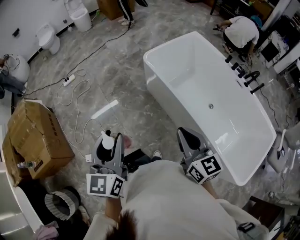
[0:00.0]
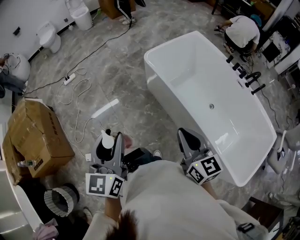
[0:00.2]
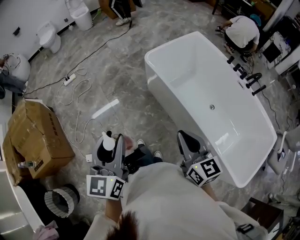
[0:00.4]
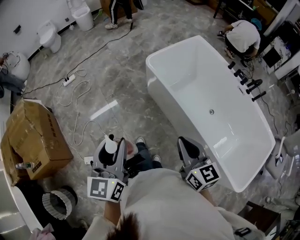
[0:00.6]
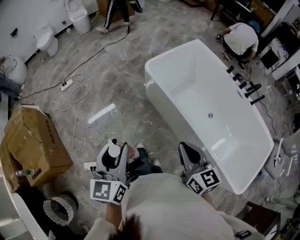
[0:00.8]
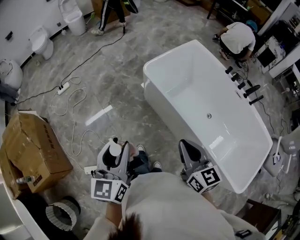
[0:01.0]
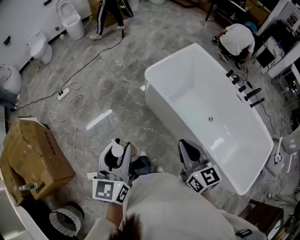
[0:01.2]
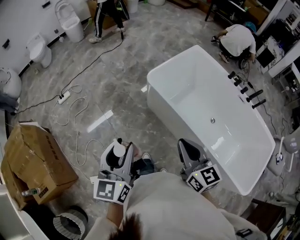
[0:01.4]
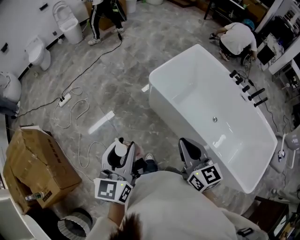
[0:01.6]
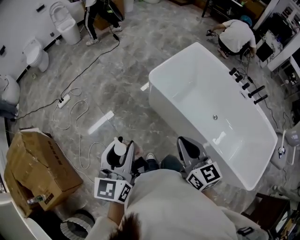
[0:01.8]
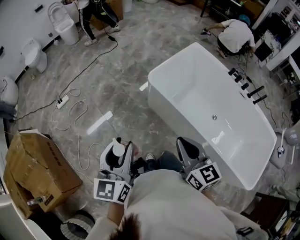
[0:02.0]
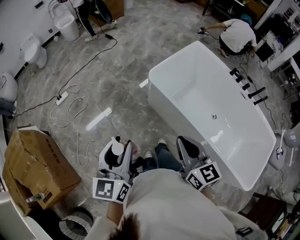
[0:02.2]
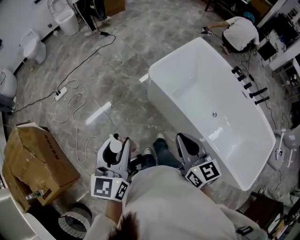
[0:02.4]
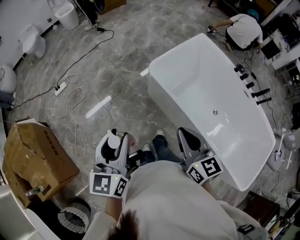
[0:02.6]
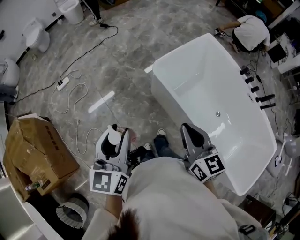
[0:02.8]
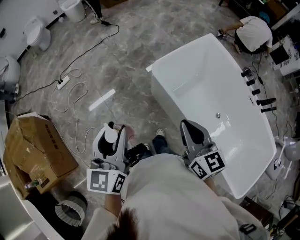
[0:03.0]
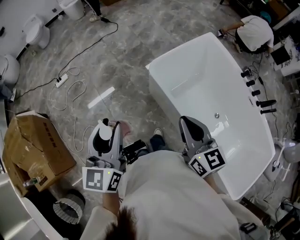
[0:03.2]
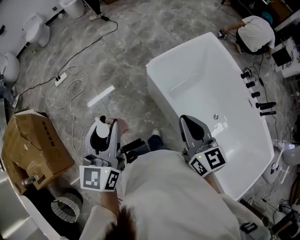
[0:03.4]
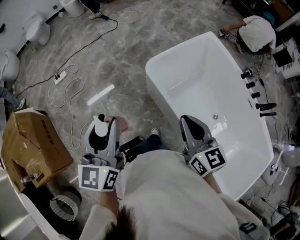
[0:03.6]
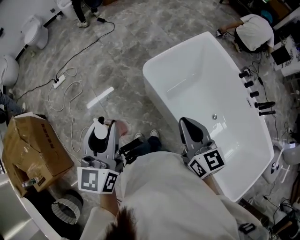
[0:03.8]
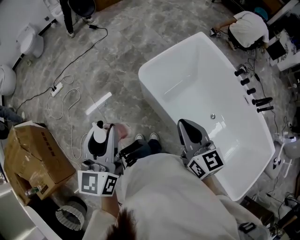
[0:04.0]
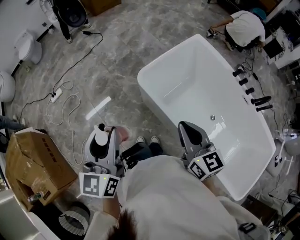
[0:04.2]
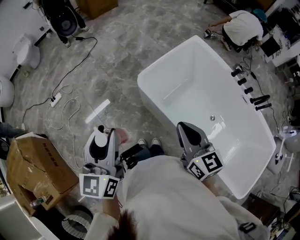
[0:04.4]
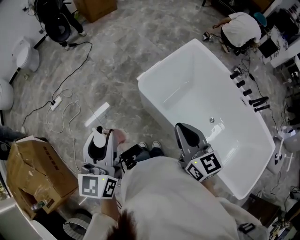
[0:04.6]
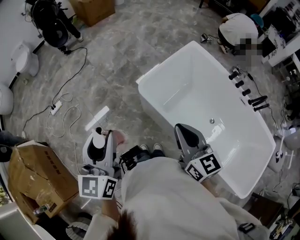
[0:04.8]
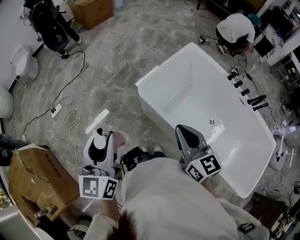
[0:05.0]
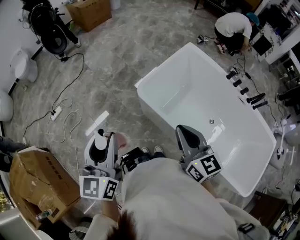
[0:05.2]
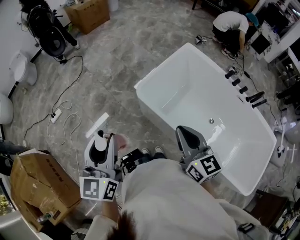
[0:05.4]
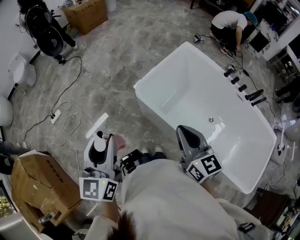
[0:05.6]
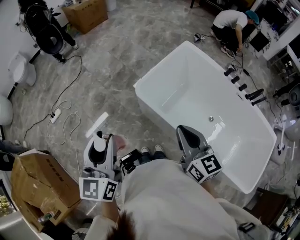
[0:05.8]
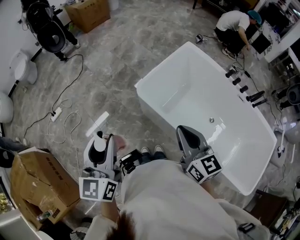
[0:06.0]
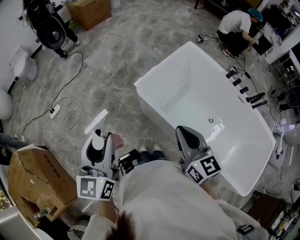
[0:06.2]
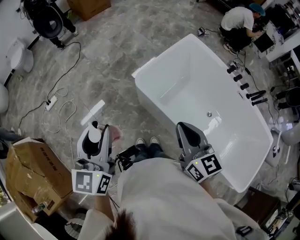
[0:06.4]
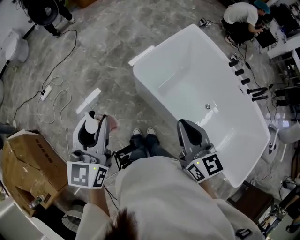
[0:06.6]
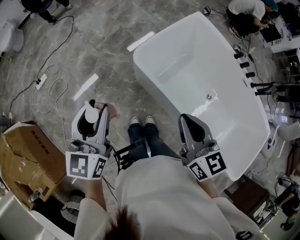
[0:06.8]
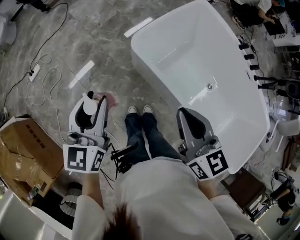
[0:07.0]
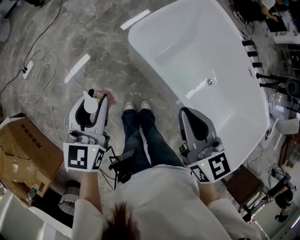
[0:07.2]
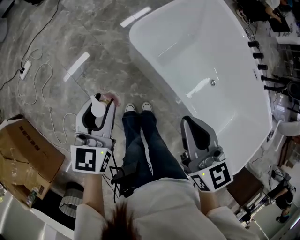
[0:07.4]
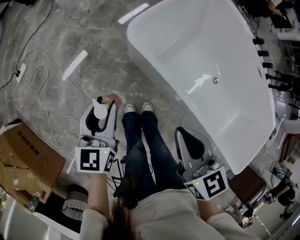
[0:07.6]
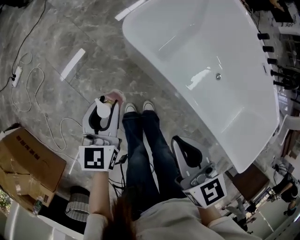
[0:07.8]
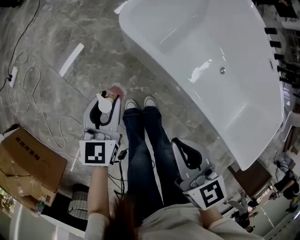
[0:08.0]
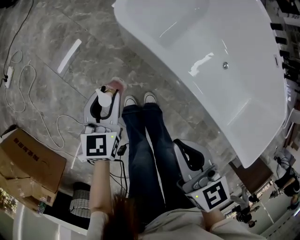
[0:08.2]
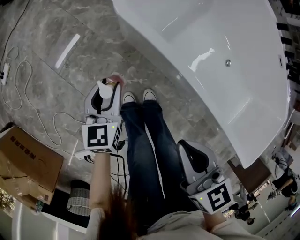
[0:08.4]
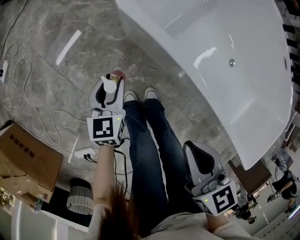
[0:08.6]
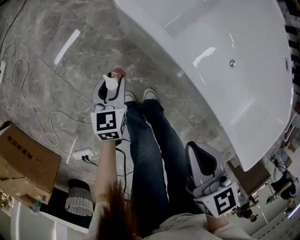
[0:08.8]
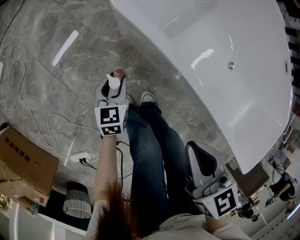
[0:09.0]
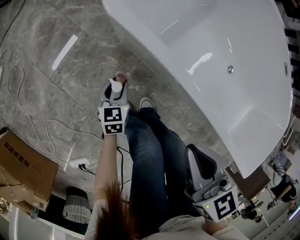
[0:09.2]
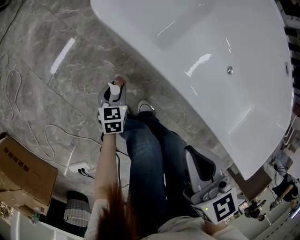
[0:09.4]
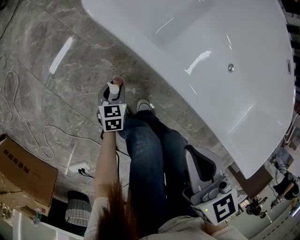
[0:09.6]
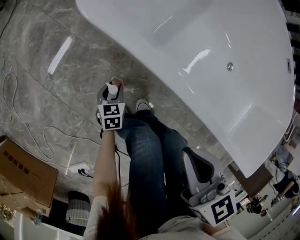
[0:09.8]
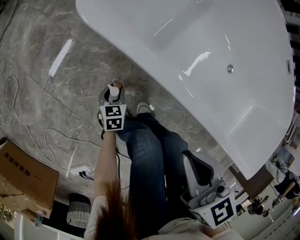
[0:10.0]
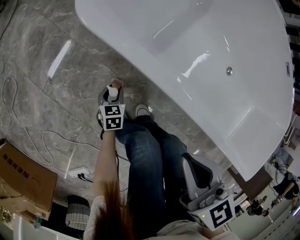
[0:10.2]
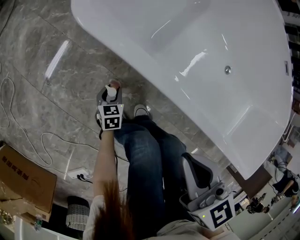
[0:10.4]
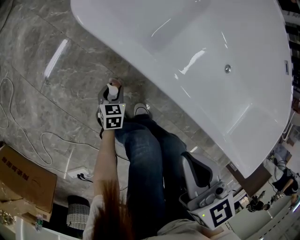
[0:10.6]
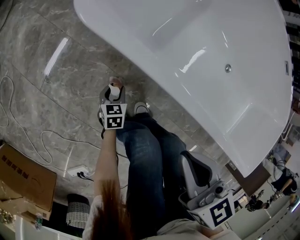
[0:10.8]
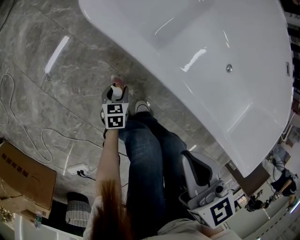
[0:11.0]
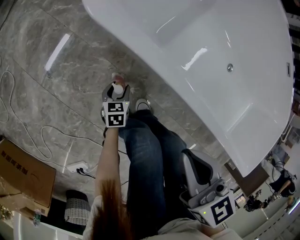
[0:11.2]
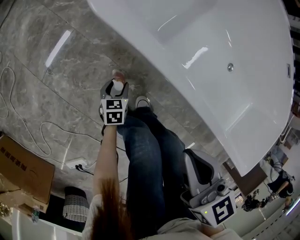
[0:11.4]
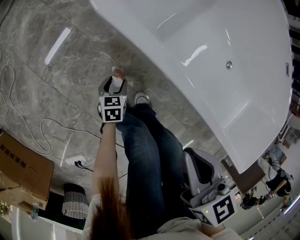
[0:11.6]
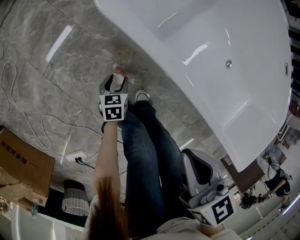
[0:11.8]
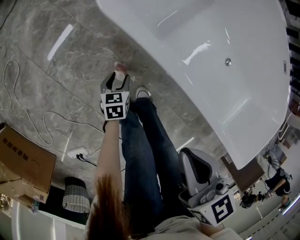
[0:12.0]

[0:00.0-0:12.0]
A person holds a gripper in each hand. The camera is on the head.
0:00.0 to 0:01.6: The right gripper is displaced forward and to the left by roughly 20 cm. Meanwhile the left gripper heads forward, covering roughly 20 cm.
0:01.6 to 0:03.0: The grippers both shift forward by approximately 15 cm.
0:03.0 to 0:04.4: The right gripper moves to the right, approximately 5 cm. The left gripper moves forward, approximately 5 cm.
0:04.4 to 0:06.0: The grippers stay close to where they were, moving slightly.
0:06.0 to 0:07.6: The right gripper is displaced downward by about 20 cm, while the left gripper is displaced downward by about 30 cm.
0:07.6 to 0:09.0: The left gripper shifts some 35 cm downward; the right gripper is displaced downward by about 20 cm.
0:09.0 to 0:10.4: The right gripper shifts by approximately 5 cm, while the left gripper moves downward, some 20 cm.
0:10.4 to 0:12.0: Both grippers move upward, approximately 5 cm.

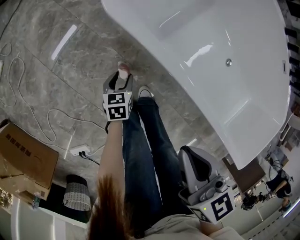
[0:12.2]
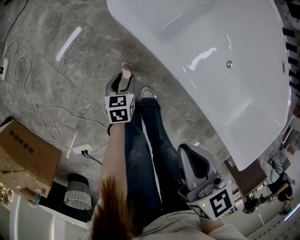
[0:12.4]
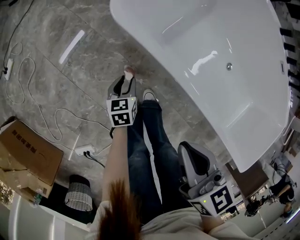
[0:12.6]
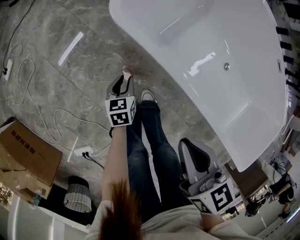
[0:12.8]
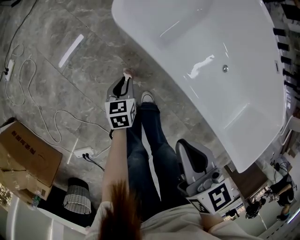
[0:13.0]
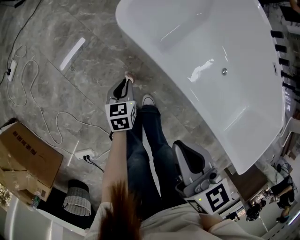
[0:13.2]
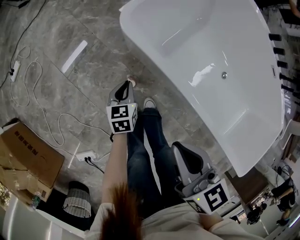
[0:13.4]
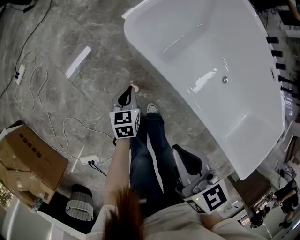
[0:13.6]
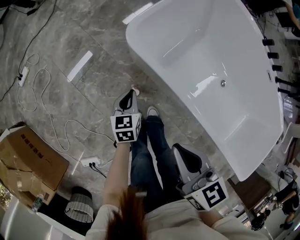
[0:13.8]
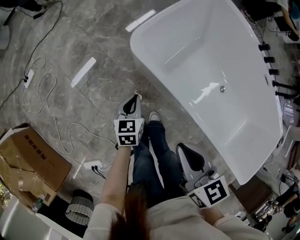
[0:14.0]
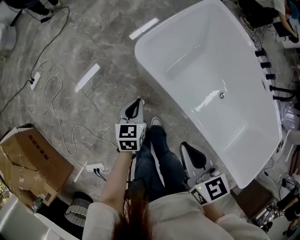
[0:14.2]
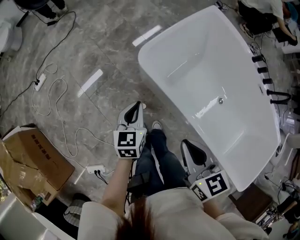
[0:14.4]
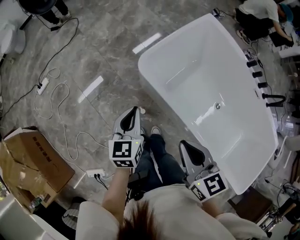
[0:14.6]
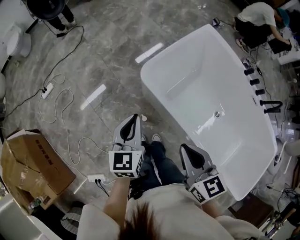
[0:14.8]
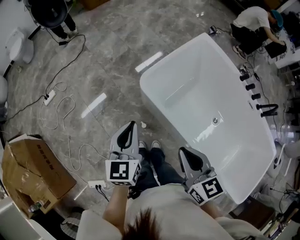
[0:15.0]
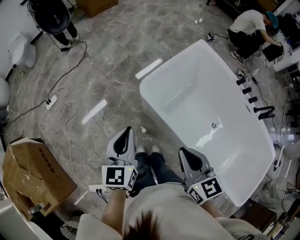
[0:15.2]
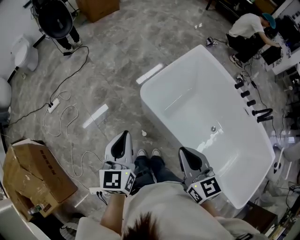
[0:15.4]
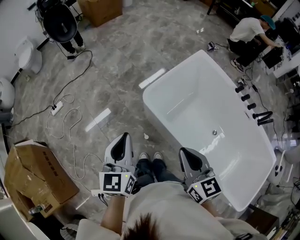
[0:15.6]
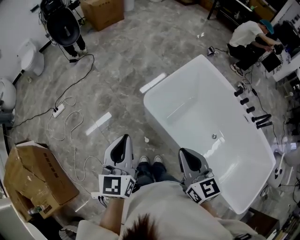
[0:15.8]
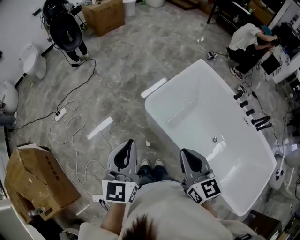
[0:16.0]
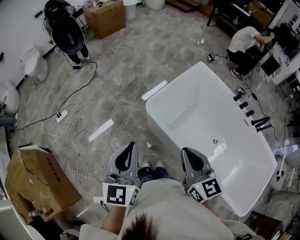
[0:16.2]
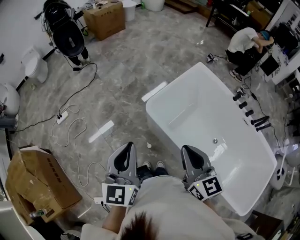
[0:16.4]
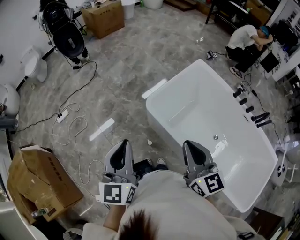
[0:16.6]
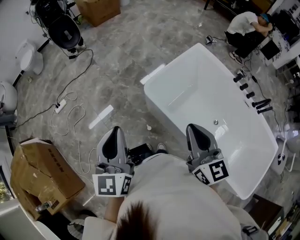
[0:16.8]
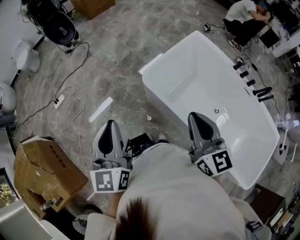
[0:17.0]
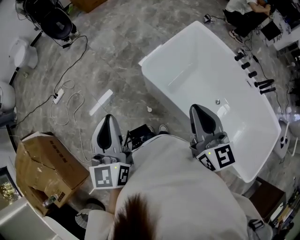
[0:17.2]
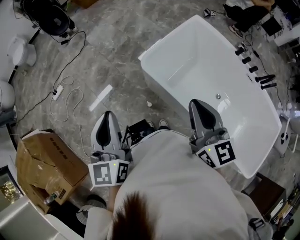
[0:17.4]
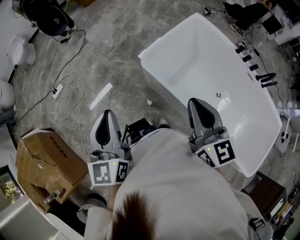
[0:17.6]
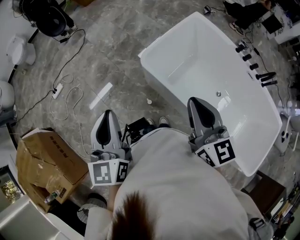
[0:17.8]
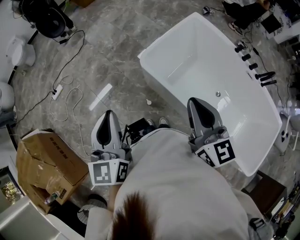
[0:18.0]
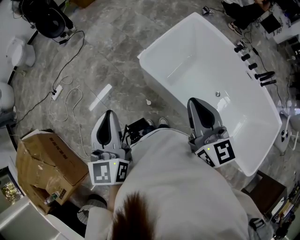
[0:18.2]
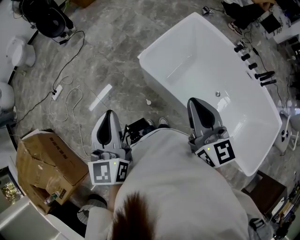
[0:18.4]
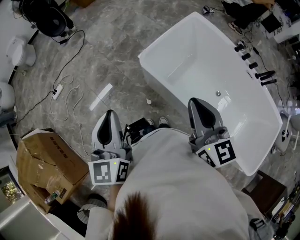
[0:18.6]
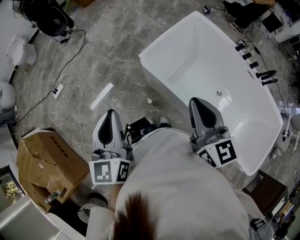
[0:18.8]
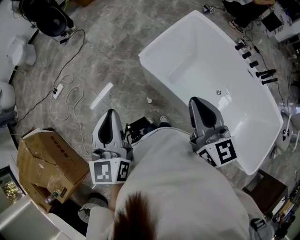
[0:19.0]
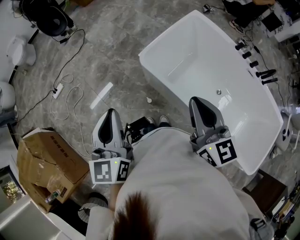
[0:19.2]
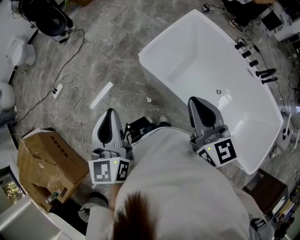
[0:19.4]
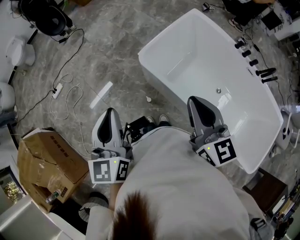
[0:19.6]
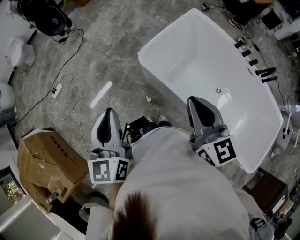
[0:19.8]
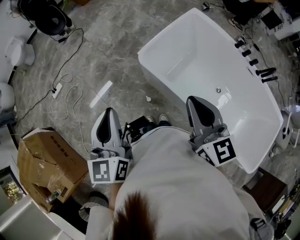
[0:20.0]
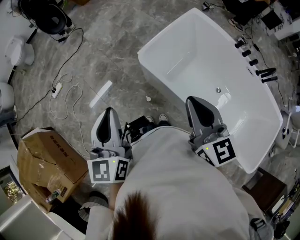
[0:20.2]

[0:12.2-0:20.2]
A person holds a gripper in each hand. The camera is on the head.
0:12.2 to 0:13.8: The left gripper travels upward by about 20 cm, and closes up. The right gripper moves upward, some 10 cm.
0:13.8 to 0:15.4: The right gripper travels upward by about 20 cm, while the left gripper travels upward by roughly 40 cm, and turns by about 30 degrees.
0:15.4 to 0:17.0: The right gripper heads upward, covering roughly 10 cm. Meanwhile the left gripper is displaced upward and to the left by about 10 cm.
0:17.0 to 0:18.6: There are only small adjustments of the grippers.
0:18.6 to 0:20.2: The two grippers keep their place.

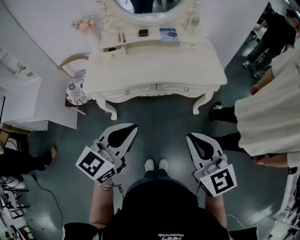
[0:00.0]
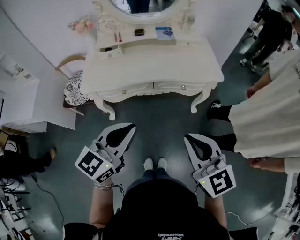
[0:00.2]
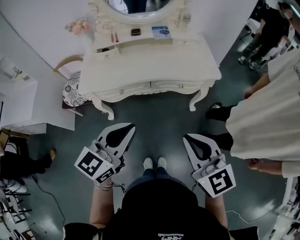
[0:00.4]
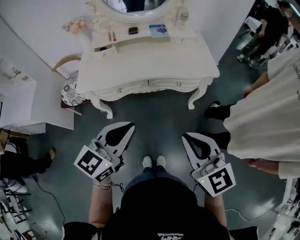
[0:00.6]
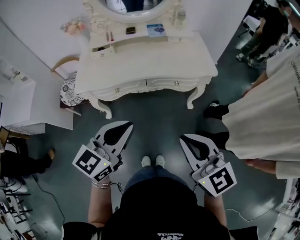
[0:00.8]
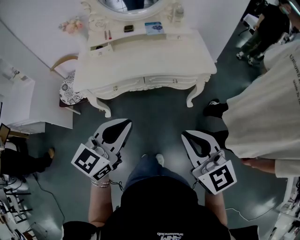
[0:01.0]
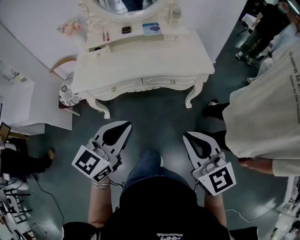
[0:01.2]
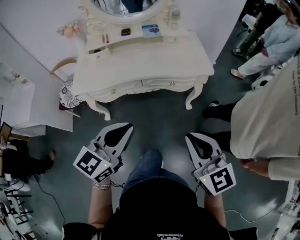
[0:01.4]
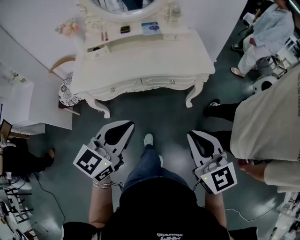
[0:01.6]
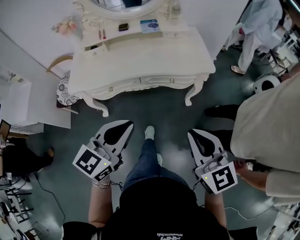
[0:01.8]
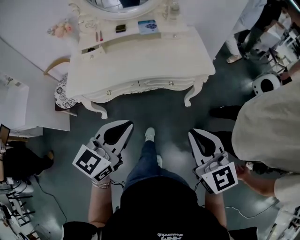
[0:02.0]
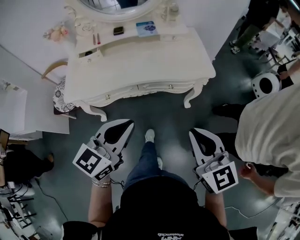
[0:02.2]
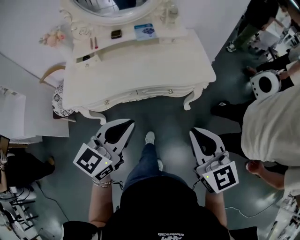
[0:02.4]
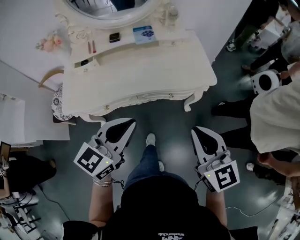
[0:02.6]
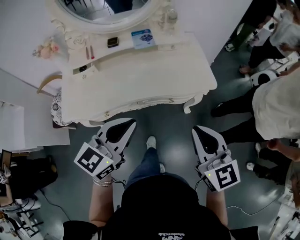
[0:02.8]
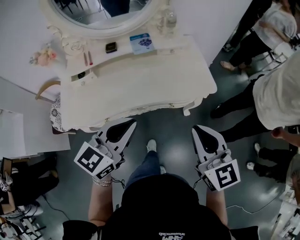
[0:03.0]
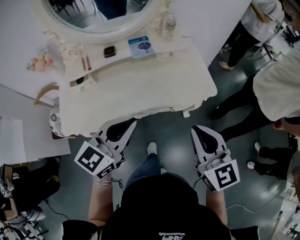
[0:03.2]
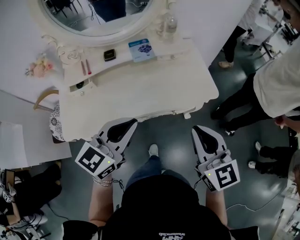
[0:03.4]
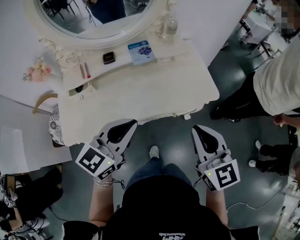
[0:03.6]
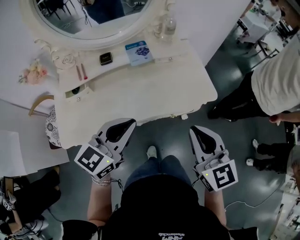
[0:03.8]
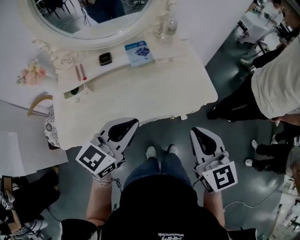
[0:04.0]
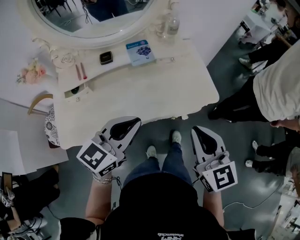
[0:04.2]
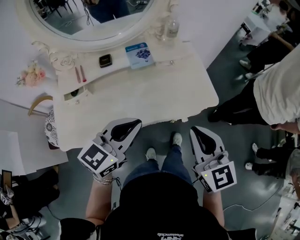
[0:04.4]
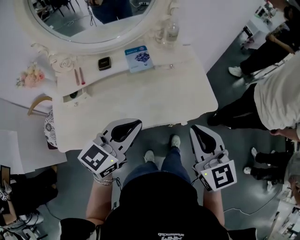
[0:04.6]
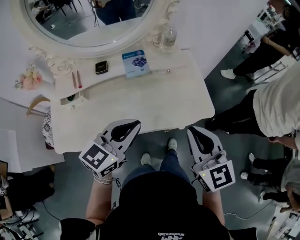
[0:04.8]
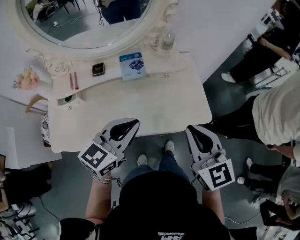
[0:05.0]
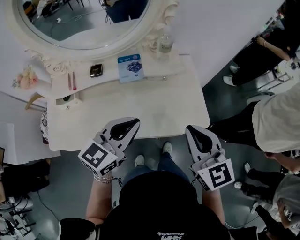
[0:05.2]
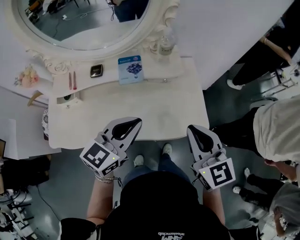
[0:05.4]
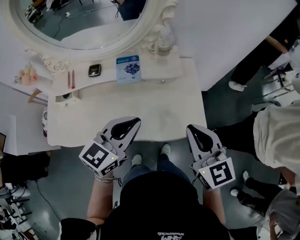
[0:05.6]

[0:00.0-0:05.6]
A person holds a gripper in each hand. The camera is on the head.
0:00.0 to 0:01.4: The two grippers go some 10 cm to the right.
0:01.4 to 0:02.8: The two grippers go some 20 cm forward.
0:02.8 to 0:04.2: The right gripper travels forward and to the left by approximately 10 cm; the left gripper goes some 10 cm forward.
0:04.2 to 0:05.6: The grippers both shift forward and to the right by approximately 15 cm.
